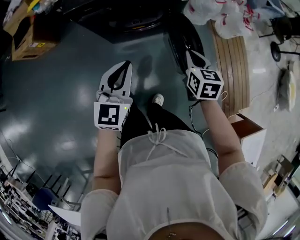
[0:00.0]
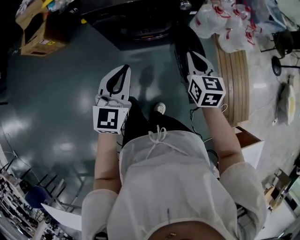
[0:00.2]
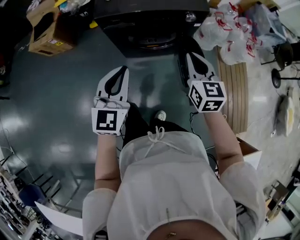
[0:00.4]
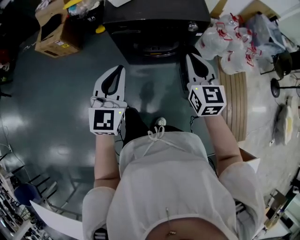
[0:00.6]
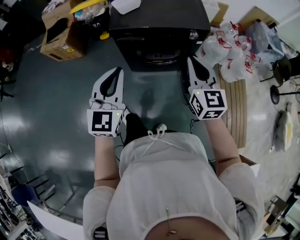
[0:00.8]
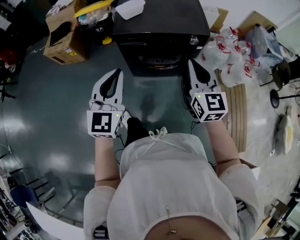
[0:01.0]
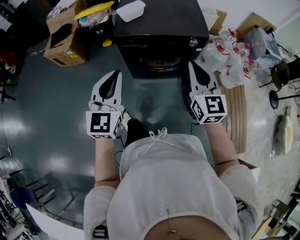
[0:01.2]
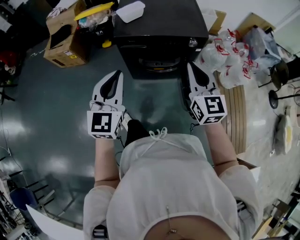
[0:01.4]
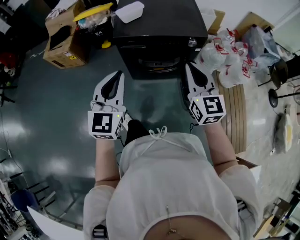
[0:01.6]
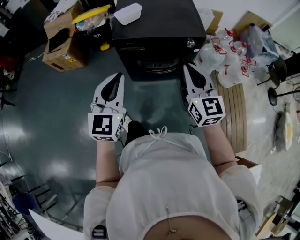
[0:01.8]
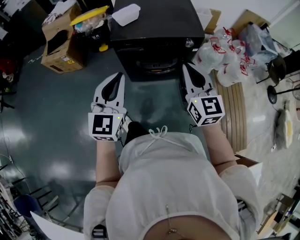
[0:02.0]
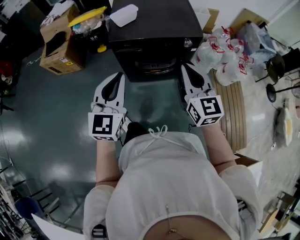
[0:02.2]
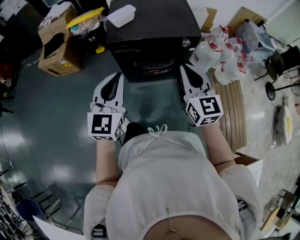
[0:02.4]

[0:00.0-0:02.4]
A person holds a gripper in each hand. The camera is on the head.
0:00.0 to 0:01.2: The grippers both shift upward and to the left by roughly 25 cm. The left gripper swivels approximately 20 degrees. The right gripper tips its fingers upward by about 40 degrees.
0:01.2 to 0:02.4: There are only small adjustments of the grippers.

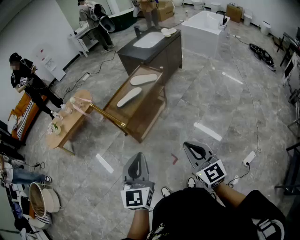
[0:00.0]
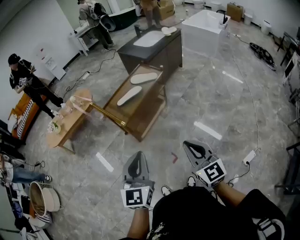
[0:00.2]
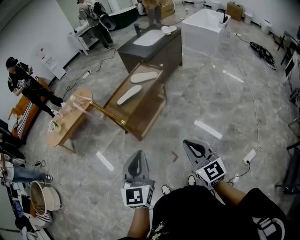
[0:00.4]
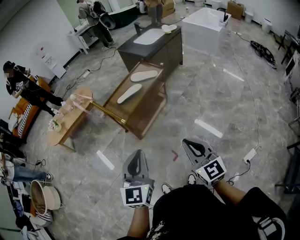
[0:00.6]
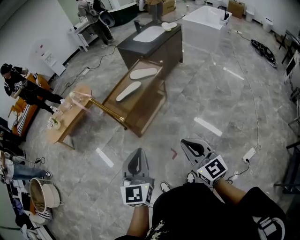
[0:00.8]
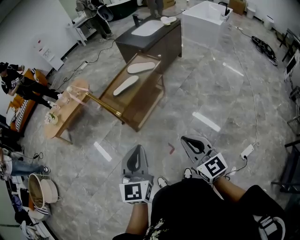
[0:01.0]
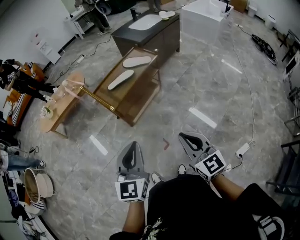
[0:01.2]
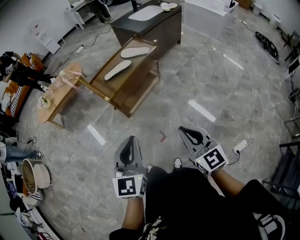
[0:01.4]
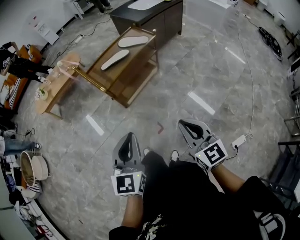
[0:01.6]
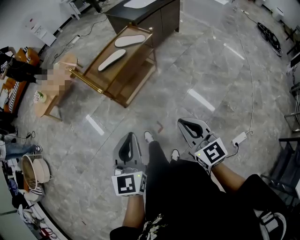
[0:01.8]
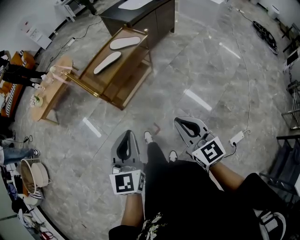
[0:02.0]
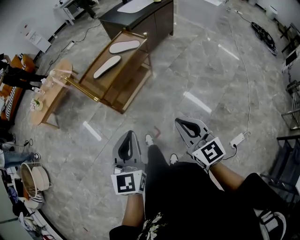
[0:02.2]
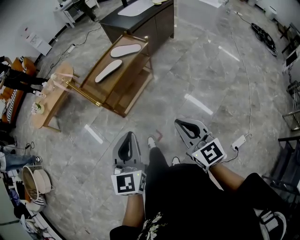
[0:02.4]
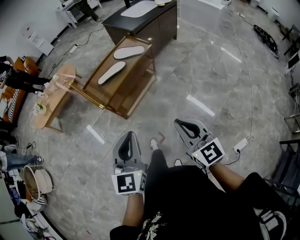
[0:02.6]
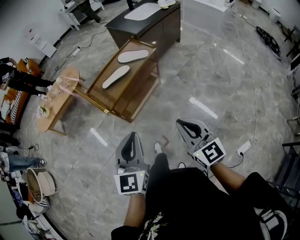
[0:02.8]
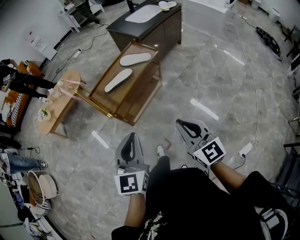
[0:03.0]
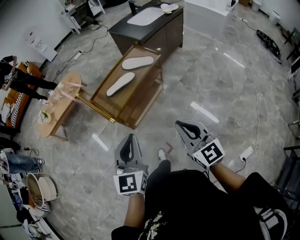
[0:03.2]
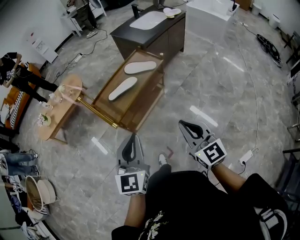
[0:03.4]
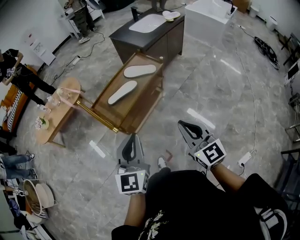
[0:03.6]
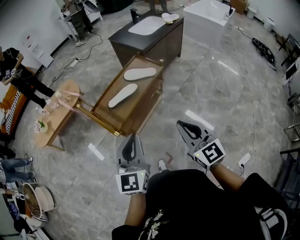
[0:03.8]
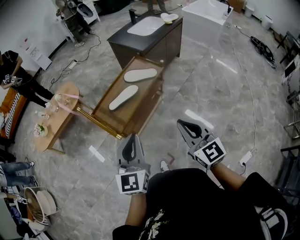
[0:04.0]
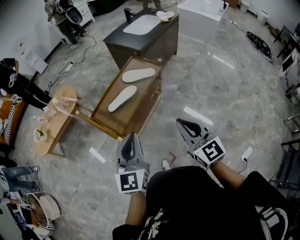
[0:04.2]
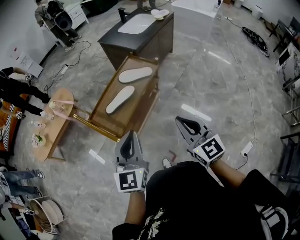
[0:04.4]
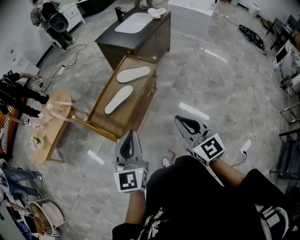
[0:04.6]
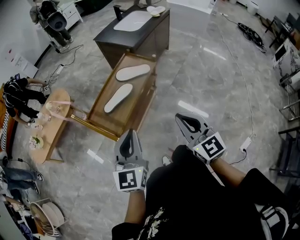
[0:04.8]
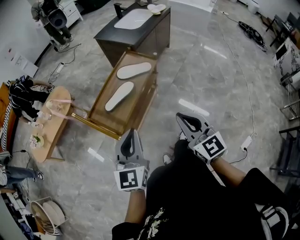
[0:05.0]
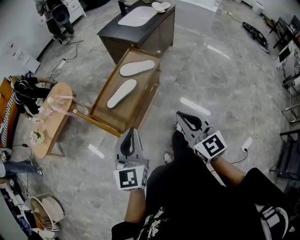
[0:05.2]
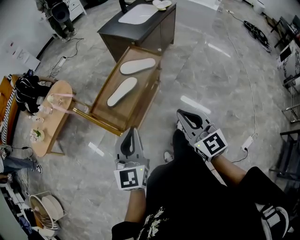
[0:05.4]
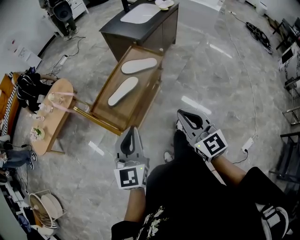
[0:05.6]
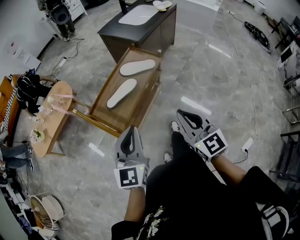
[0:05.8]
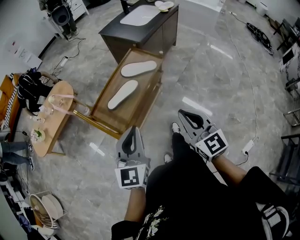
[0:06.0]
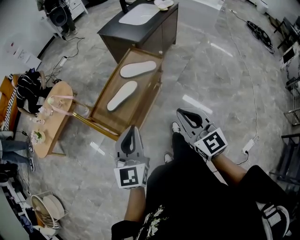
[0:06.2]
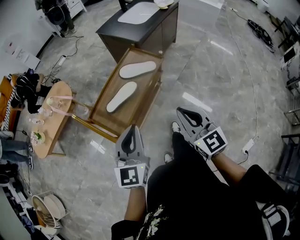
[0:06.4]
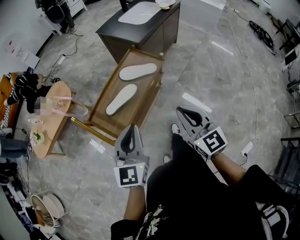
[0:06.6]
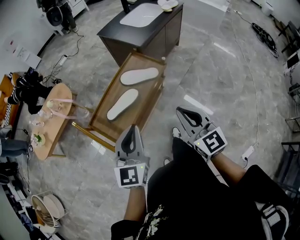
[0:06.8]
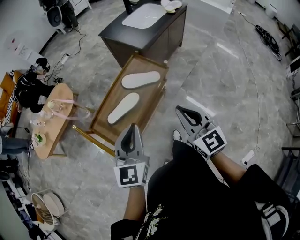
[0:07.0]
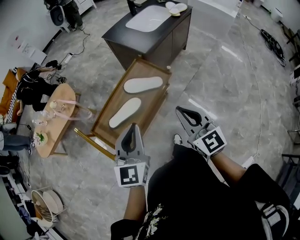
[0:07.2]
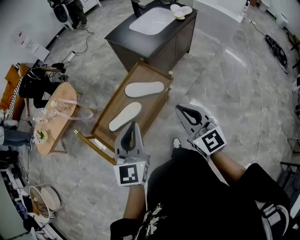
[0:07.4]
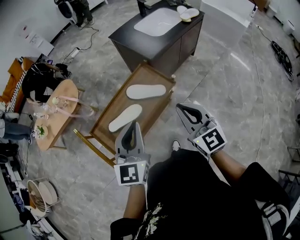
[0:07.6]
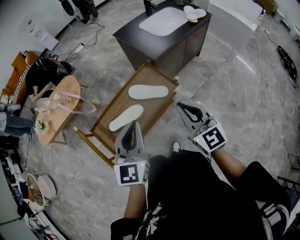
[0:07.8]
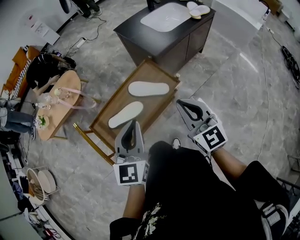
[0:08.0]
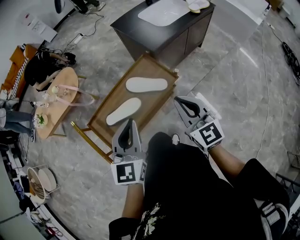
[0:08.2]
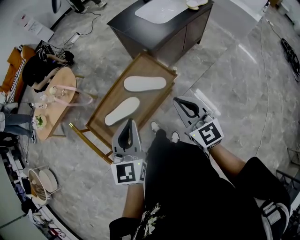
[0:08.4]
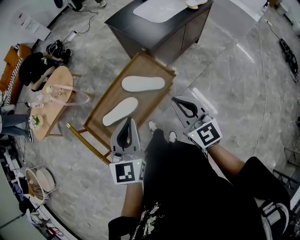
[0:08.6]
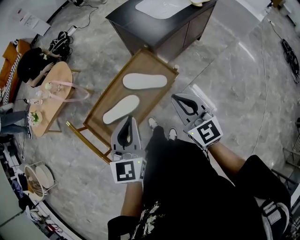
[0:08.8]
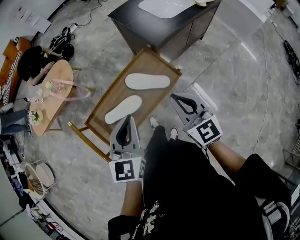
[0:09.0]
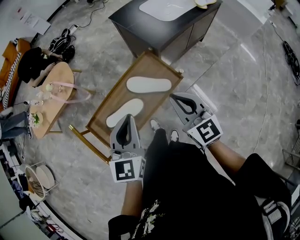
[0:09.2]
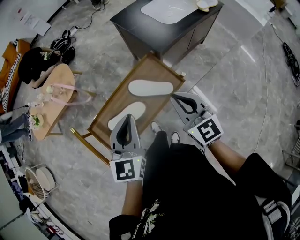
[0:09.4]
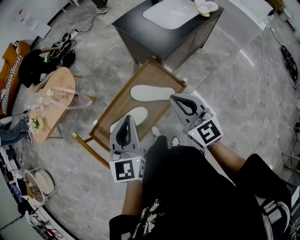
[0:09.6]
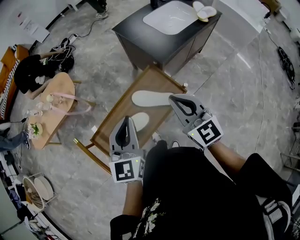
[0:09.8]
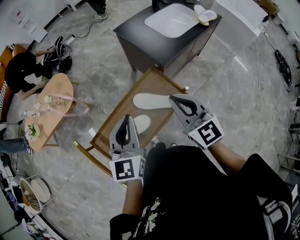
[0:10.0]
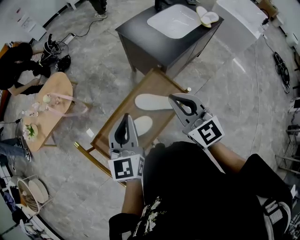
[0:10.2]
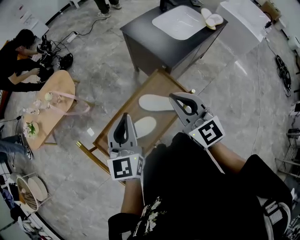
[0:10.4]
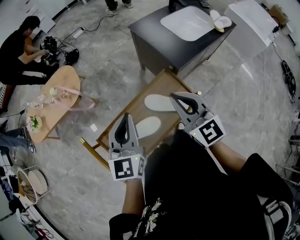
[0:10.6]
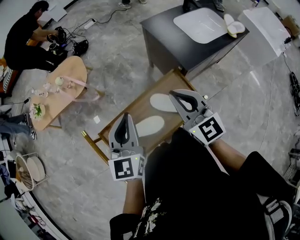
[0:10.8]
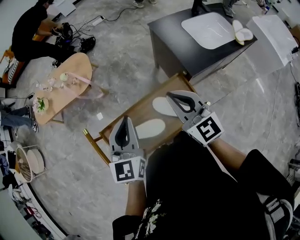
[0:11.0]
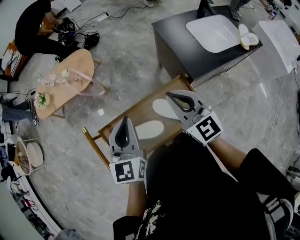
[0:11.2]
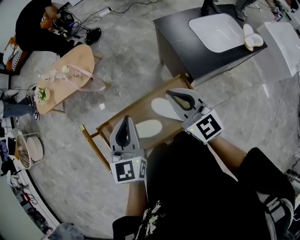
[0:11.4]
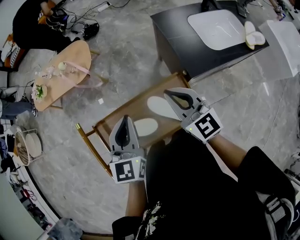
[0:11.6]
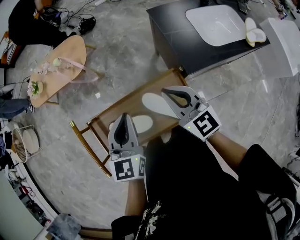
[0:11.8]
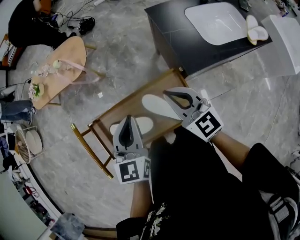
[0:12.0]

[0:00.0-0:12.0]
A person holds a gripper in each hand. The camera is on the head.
0:00.0 to 0:01.6: The two grippers go roughly 5 cm to the right.
0:01.6 to 0:03.0: The grippers both shift forward by roughly 15 cm.
0:03.0 to 0:04.4: The two grippers go some 15 cm forward.
0:04.4 to 0:06.0: The grippers move only a little.
0:06.0 to 0:07.6: The right gripper shifts some 20 cm forward, while the left gripper shifts some 20 cm forward and to the right.
0:07.6 to 0:09.0: The grippers both shift forward by approximately 5 cm.
0:09.0 to 0:10.4: Both grippers move forward and to the left, about 15 cm.
0:10.4 to 0:12.0: The left gripper shifts by roughly 5 cm, and changes its angle by some 20 degrees. The right gripper moves approximately 10 cm, and swivels roughly 30 degrees.

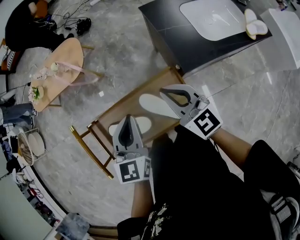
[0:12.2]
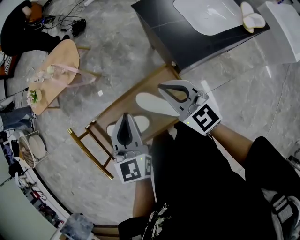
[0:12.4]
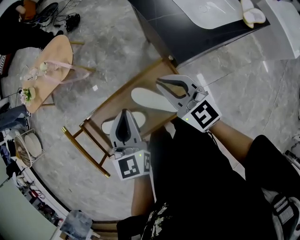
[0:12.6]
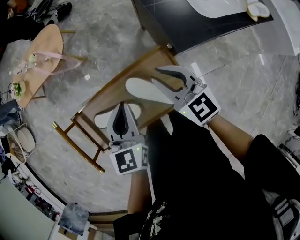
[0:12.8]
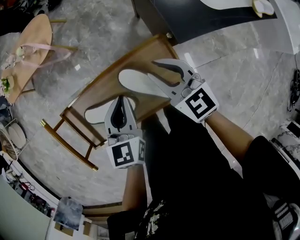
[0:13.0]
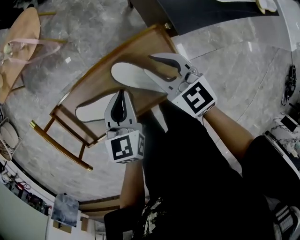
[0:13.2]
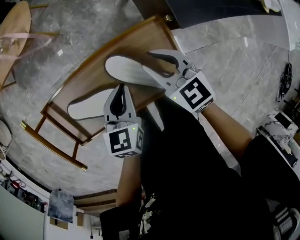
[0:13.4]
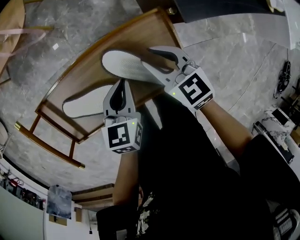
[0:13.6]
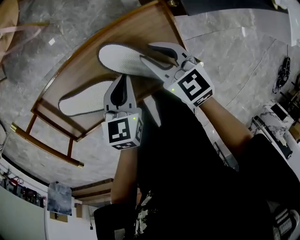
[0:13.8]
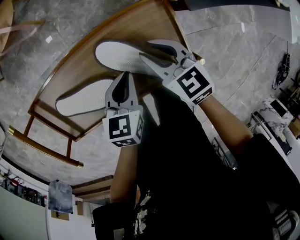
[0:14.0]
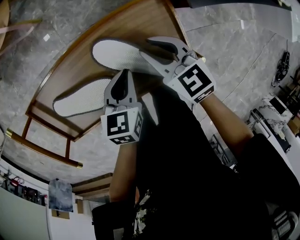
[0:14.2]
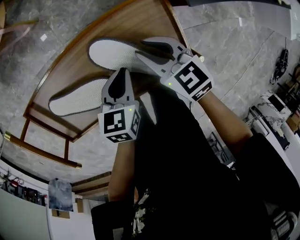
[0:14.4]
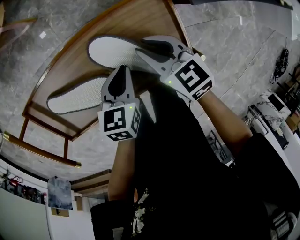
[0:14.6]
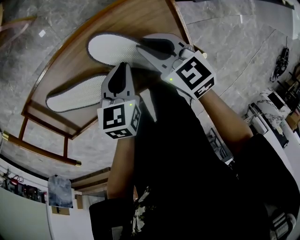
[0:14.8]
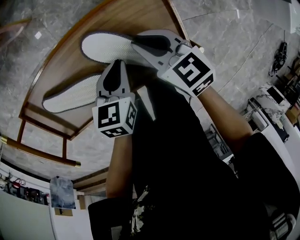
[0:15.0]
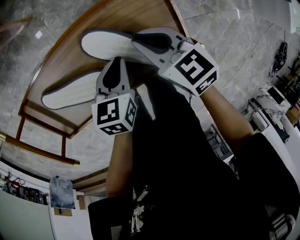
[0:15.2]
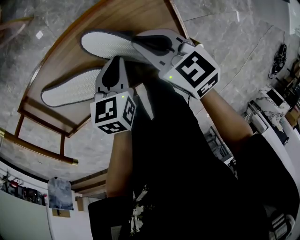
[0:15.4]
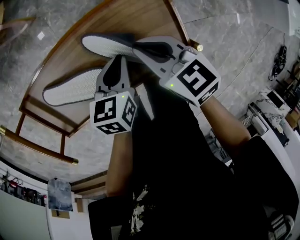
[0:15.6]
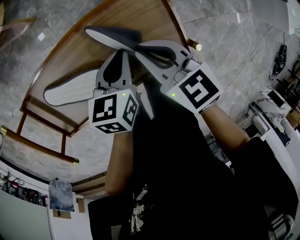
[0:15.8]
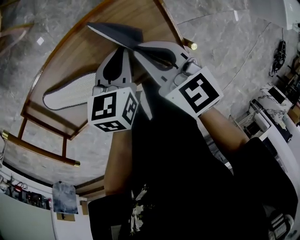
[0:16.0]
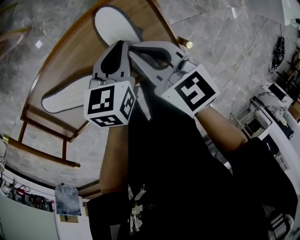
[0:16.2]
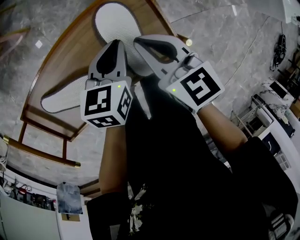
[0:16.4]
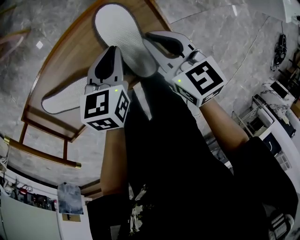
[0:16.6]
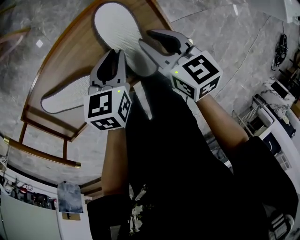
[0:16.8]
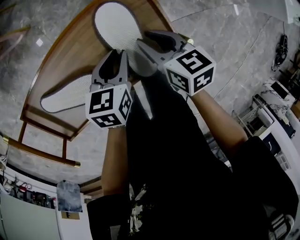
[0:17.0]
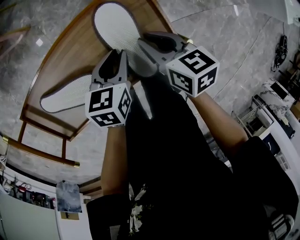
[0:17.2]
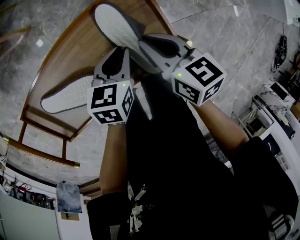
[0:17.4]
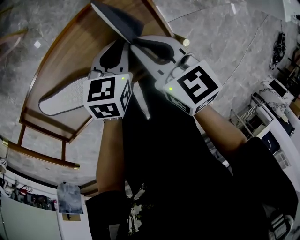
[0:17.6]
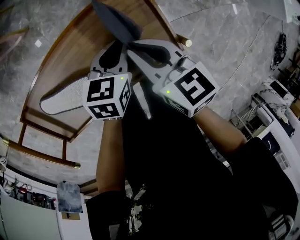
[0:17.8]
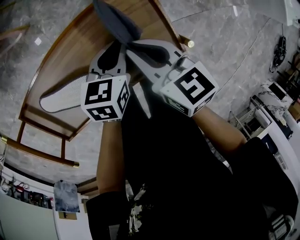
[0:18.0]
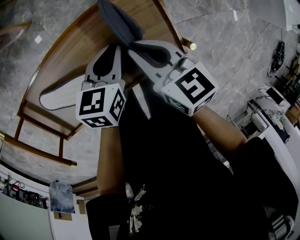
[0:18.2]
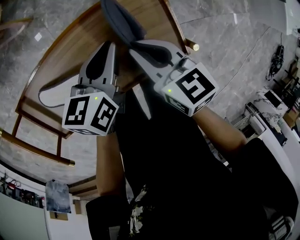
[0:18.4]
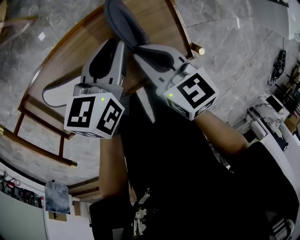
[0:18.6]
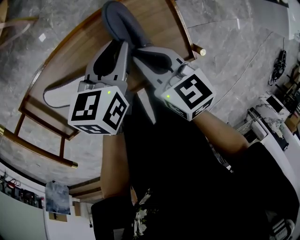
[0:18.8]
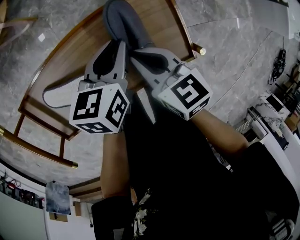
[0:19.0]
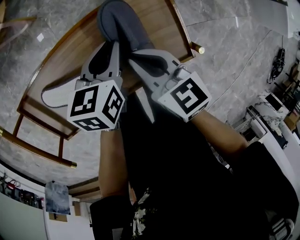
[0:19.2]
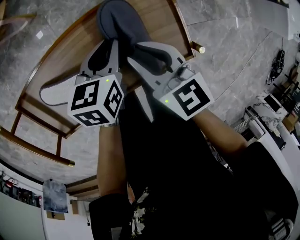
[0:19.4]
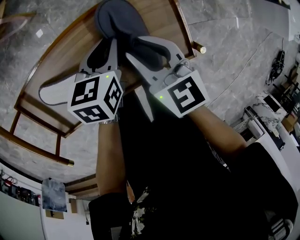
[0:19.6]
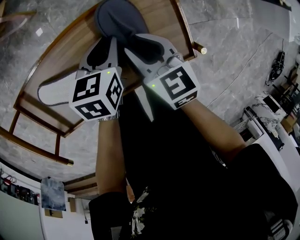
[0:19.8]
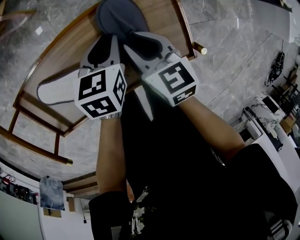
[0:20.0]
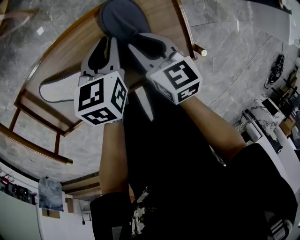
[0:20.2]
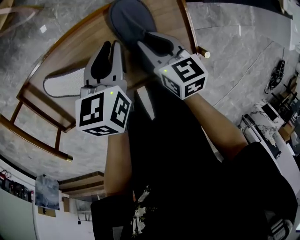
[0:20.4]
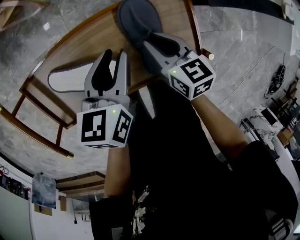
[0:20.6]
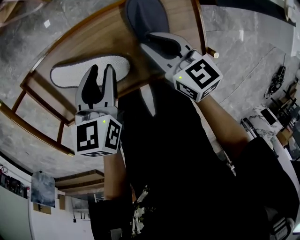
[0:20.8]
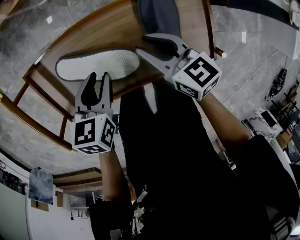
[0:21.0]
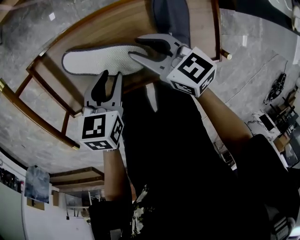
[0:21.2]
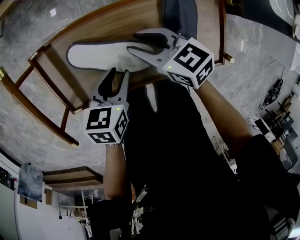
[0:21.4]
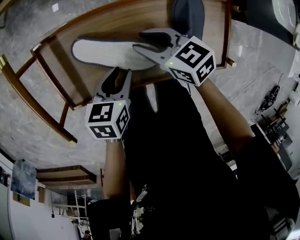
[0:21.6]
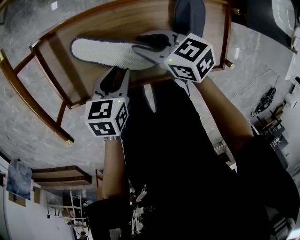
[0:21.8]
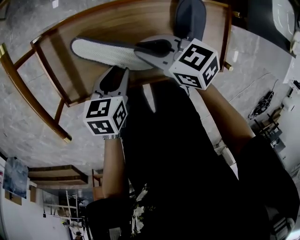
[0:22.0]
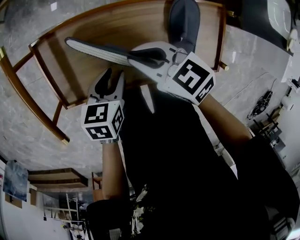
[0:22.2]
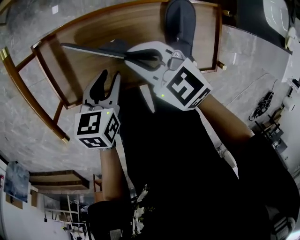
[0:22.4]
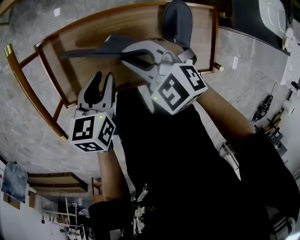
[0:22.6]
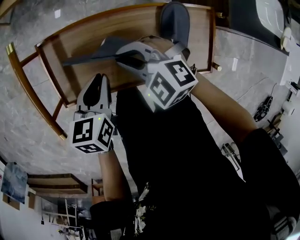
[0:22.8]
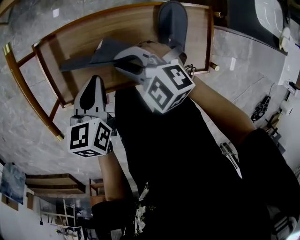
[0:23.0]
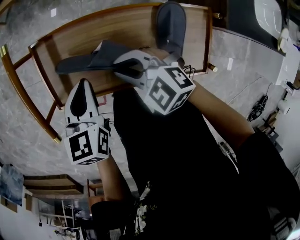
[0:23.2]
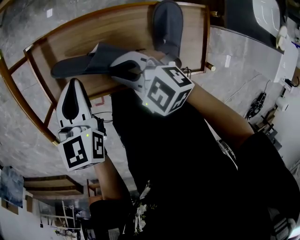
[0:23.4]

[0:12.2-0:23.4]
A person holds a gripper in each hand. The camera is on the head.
0:12.2 to 0:13.8: Both grippers move downward, roughly 25 cm. The right gripper swivels roughly 30 degrees, and opens. The left gripper turns by about 30 degrees.
0:13.8 to 0:15.4: The right gripper closes up.
0:15.4 to 0:17.0: The right gripper goes roughly 5 cm to the right, and turns by some 20 degrees.
0:17.0 to 0:18.6: The left gripper shifts approximately 10 cm upward and forward, while the right gripper moves to the left, some 5 cm.
0:18.6 to 0:20.2: The two grippers go about 5 cm downward.
0:20.2 to 0:21.8: The right gripper shifts about 15 cm to the left, and turns by some 40 degrees. The left gripper heads to the left and backward, covering approximately 20 cm.
0:21.8 to 0:23.4: The right gripper goes about 5 cm upward, and rotates around the line of its fingers by about 40 degrees, counterclockwise from behind; the left gripper moves upward, some 10 cm, changes its angle by about 30 degrees, and closes its fingers.
